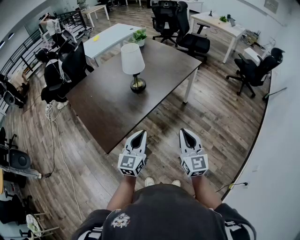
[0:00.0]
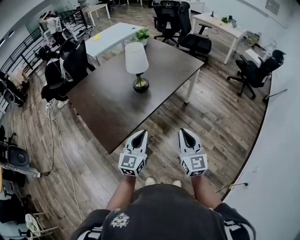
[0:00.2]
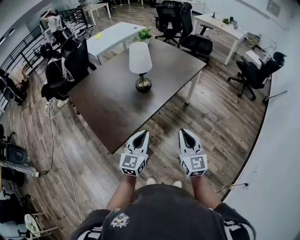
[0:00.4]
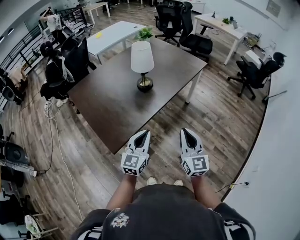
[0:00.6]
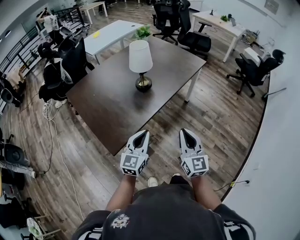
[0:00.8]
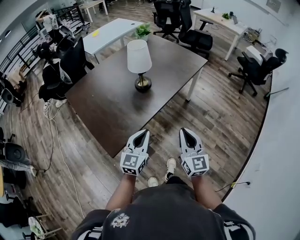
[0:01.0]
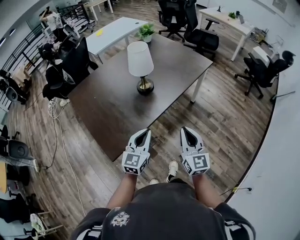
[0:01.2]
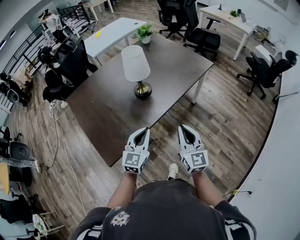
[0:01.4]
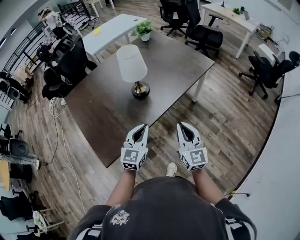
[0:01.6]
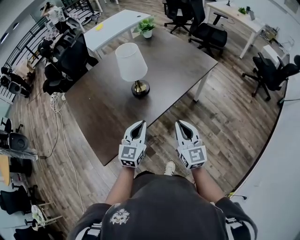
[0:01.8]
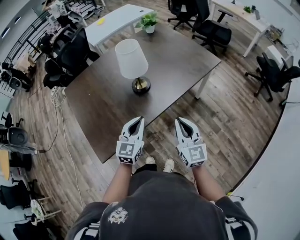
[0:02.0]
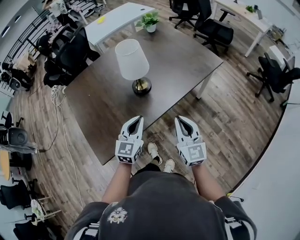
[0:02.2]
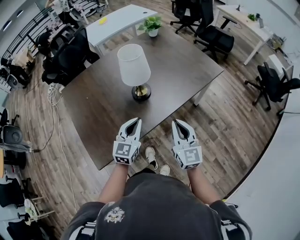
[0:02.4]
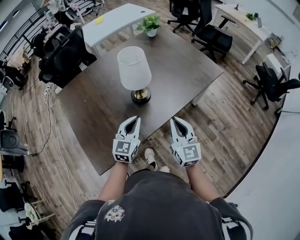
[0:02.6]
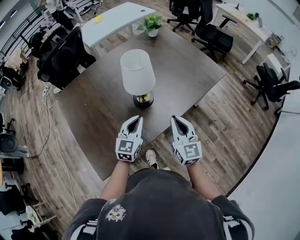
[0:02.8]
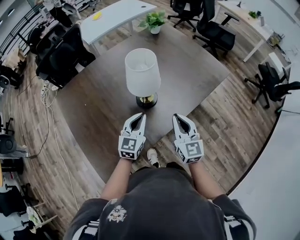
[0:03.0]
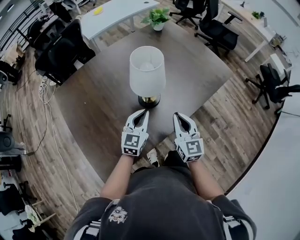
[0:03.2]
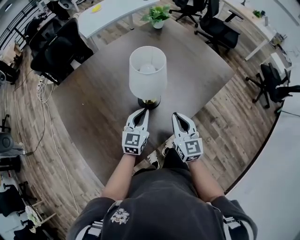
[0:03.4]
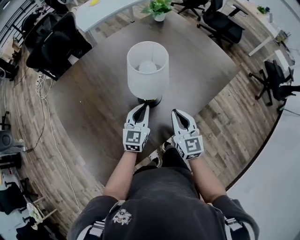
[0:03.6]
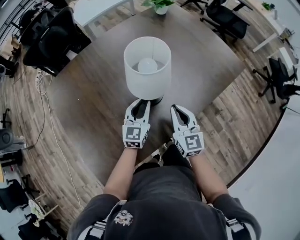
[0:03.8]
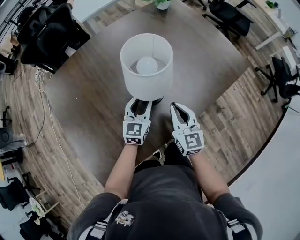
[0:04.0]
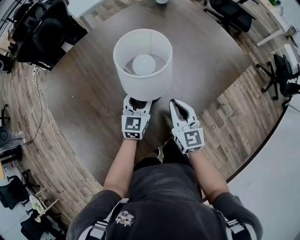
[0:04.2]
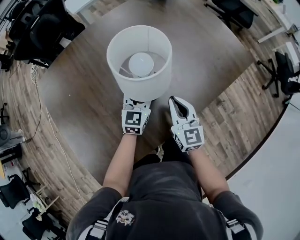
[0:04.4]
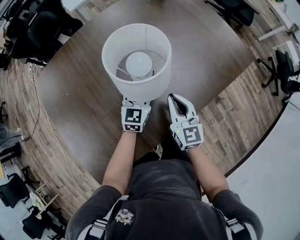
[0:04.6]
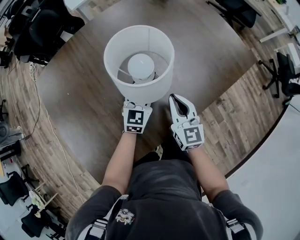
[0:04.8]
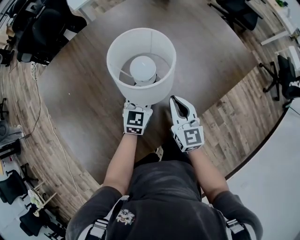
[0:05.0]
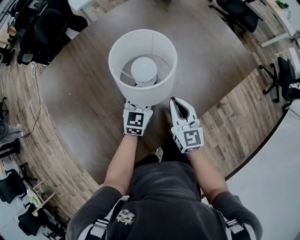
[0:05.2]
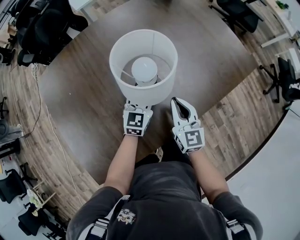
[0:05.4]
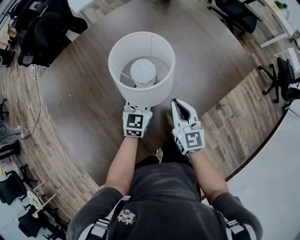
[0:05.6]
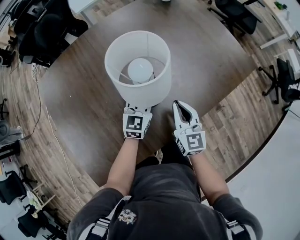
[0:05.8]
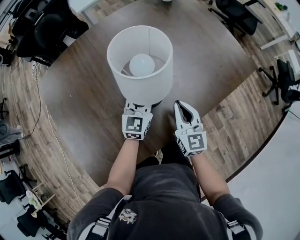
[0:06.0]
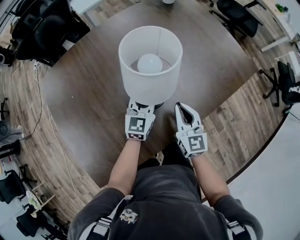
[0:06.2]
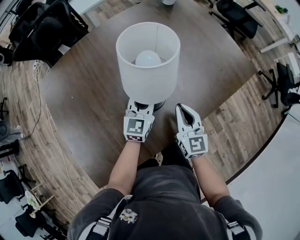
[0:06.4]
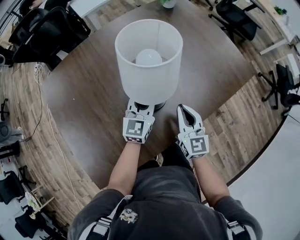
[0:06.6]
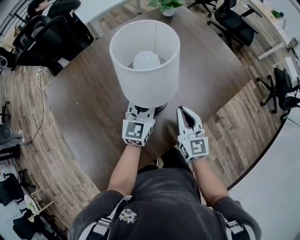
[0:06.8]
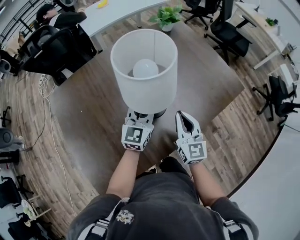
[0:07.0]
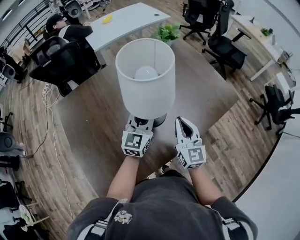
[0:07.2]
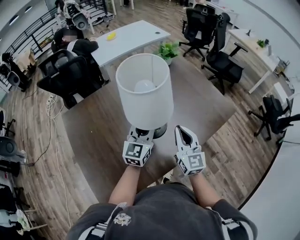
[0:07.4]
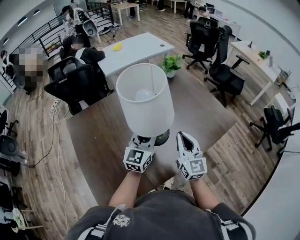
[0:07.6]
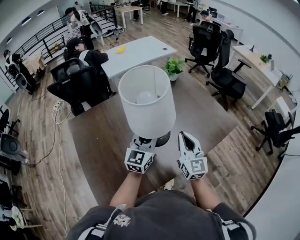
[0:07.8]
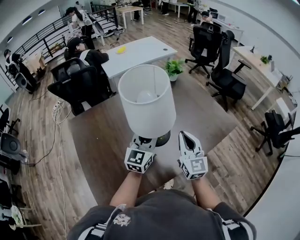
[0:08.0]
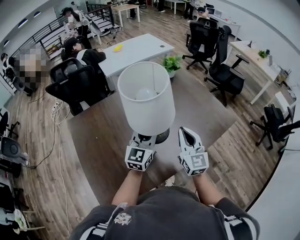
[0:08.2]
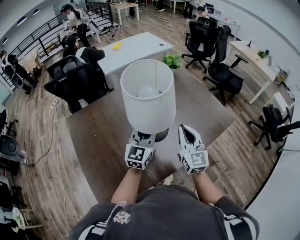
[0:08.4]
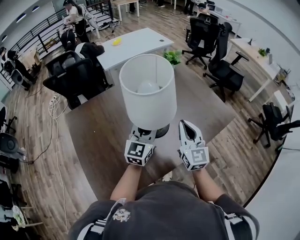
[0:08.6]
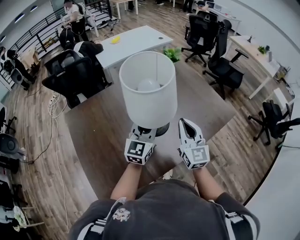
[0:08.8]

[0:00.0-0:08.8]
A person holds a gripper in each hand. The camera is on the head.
0:00.0 to 0:01.4: Both grippers move forward, roughly 15 cm.
0:01.4 to 0:03.0: Both grippers travel together forward, roughly 20 cm.
0:03.0 to 0:04.4: The left gripper shifts some 20 cm forward and downward, and opens its fingers; the right gripper travels downward and forward by roughly 15 cm.
0:04.4 to 0:05.8: The left gripper closes.
0:05.8 to 0:07.4: Both grippers travel together upward, roughly 20 cm.
0:07.4 to 0:08.8: The right gripper ends up some 5 cm from where it was.

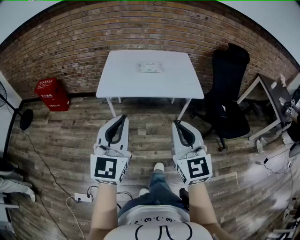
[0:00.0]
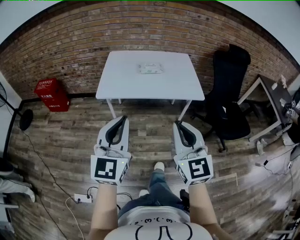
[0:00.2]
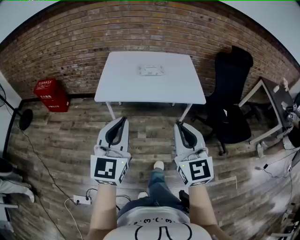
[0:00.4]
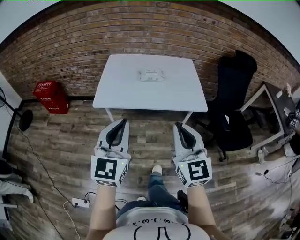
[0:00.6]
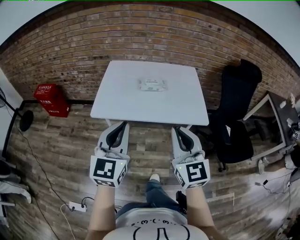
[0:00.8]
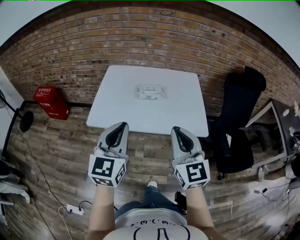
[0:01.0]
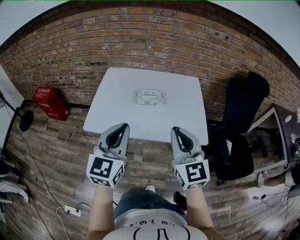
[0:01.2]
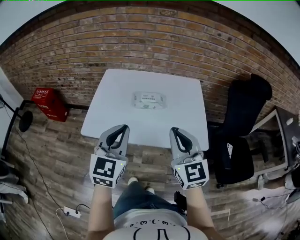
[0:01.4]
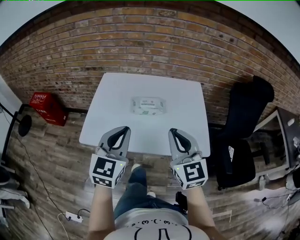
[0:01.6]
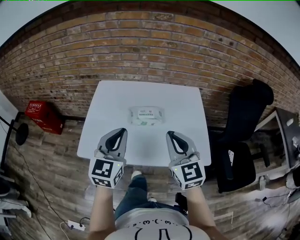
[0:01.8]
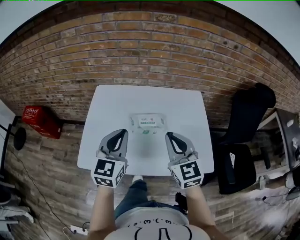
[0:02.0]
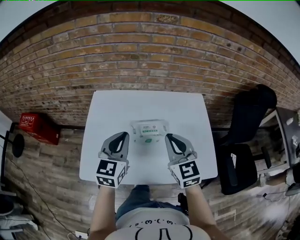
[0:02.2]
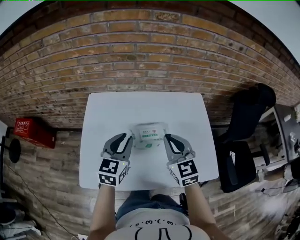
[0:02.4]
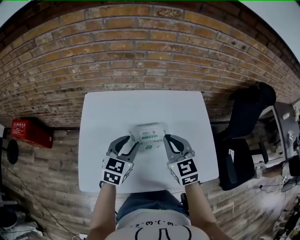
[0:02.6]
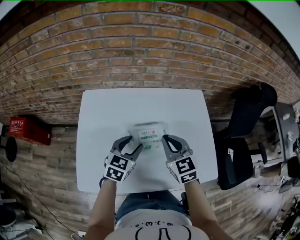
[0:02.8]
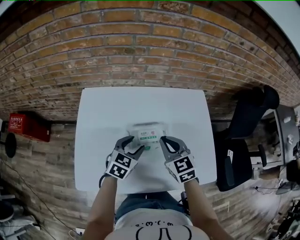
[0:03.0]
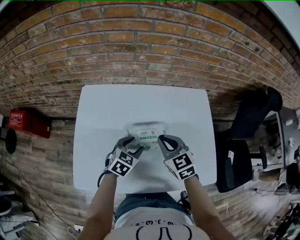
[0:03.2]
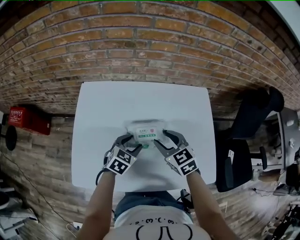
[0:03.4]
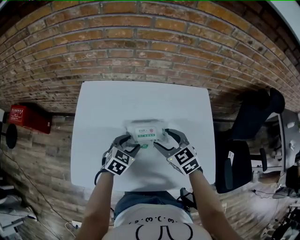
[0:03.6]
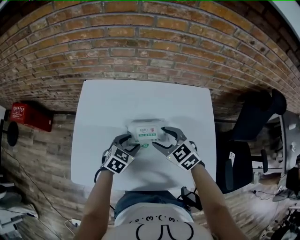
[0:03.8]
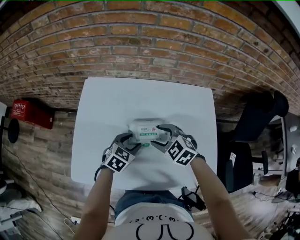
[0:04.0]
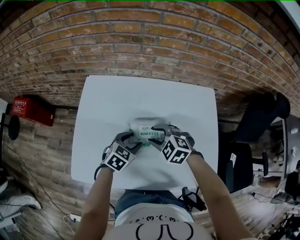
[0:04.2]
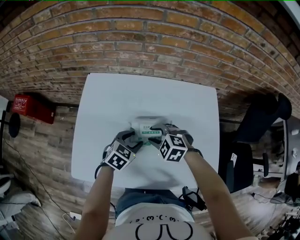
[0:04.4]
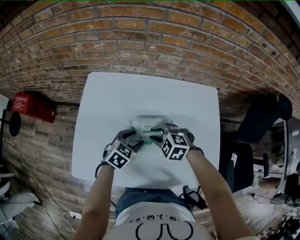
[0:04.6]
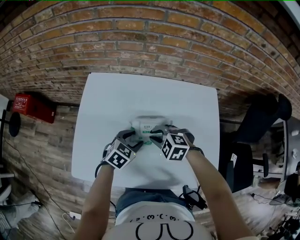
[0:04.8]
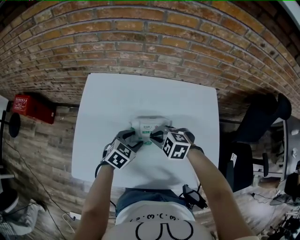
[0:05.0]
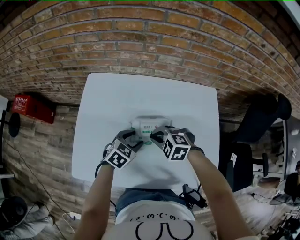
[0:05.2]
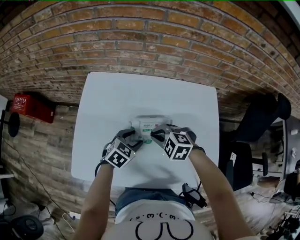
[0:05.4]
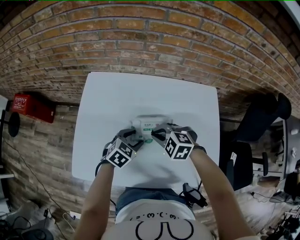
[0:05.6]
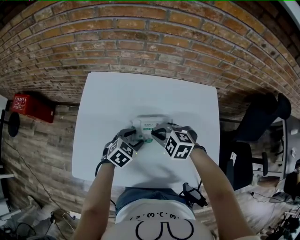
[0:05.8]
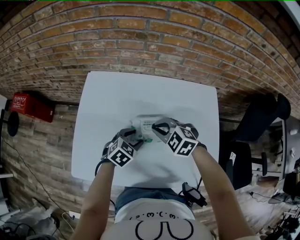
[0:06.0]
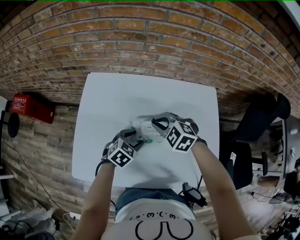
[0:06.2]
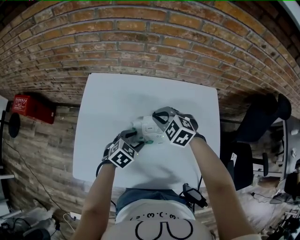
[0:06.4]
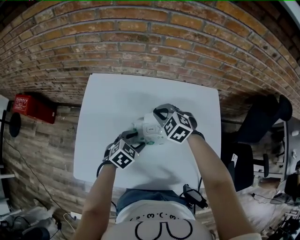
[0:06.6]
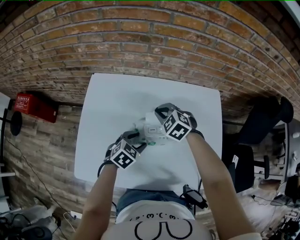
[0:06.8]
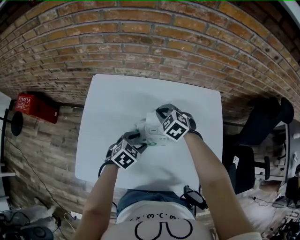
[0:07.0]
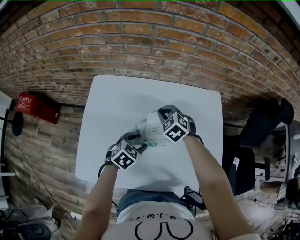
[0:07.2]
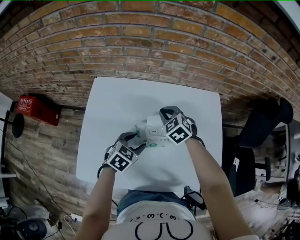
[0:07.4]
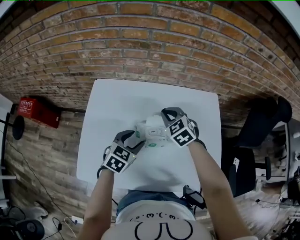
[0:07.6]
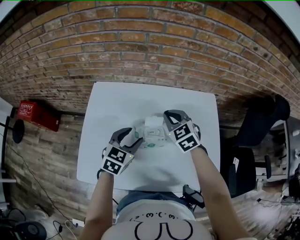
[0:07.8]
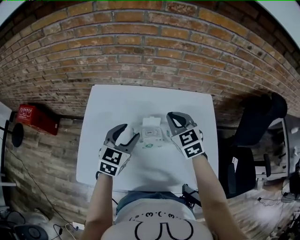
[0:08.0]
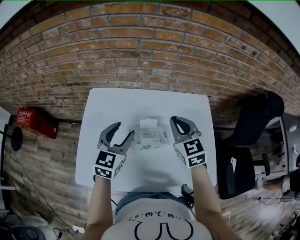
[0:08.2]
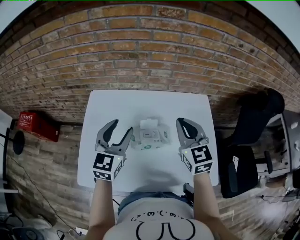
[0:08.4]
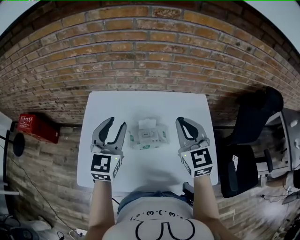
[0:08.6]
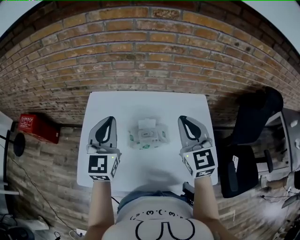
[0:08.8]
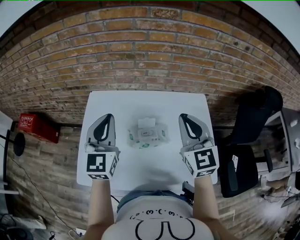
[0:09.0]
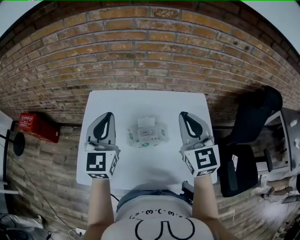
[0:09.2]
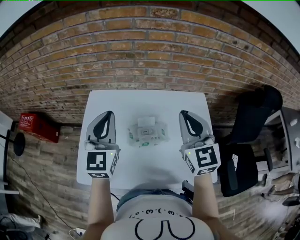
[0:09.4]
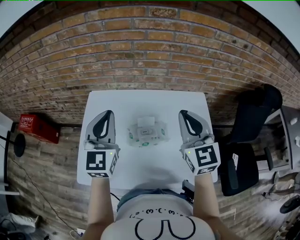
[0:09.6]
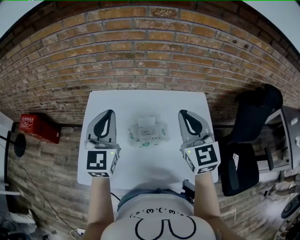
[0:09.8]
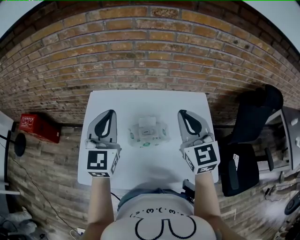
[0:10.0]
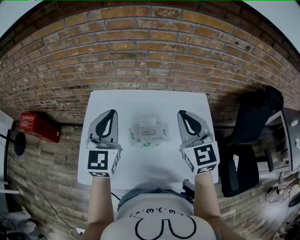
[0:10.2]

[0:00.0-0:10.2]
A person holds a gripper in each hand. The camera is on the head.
0:00.0 to 0:01.4: Both grippers travel together forward, about 35 cm.
0:01.4 to 0:03.0: Both grippers travel together forward and downward, about 35 cm. The right gripper rotates roughly 30 degrees; the left gripper turns by some 40 degrees, and opens up.
0:03.0 to 0:04.4: The left gripper travels downward by some 5 cm. Meanwhile the right gripper moves downward, about 10 cm, rotates about 50 degrees, and opens.
0:04.4 to 0:05.8: The right gripper closes up.
0:05.8 to 0:07.2: The right gripper moves forward, approximately 15 cm, and turns by about 30 degrees.
0:07.2 to 0:08.8: The right gripper moves upward, backward and to the right, about 30 cm, and angles its fingers upward, by approximately 40 degrees, while the left gripper is displaced upward by some 30 cm, tips its fingers upward by about 50 degrees, and closes its fingers.
0:08.8 to 0:10.2: The grippers make only small movements.

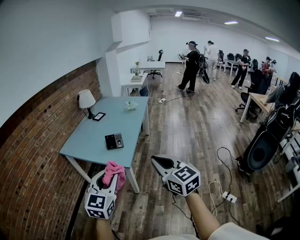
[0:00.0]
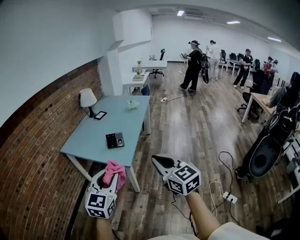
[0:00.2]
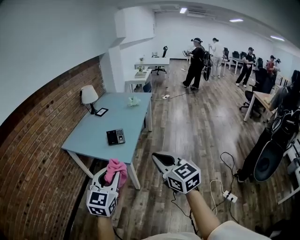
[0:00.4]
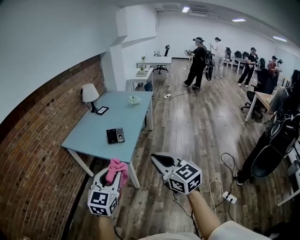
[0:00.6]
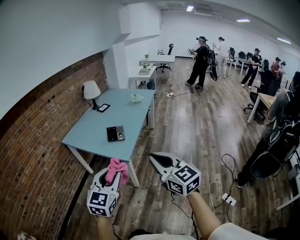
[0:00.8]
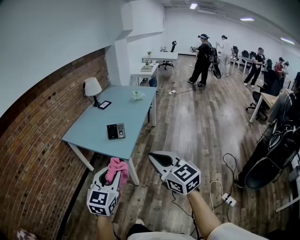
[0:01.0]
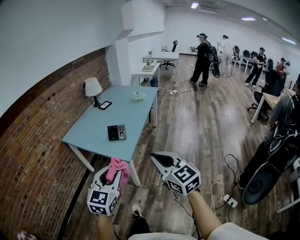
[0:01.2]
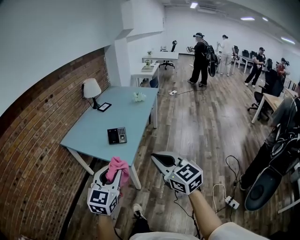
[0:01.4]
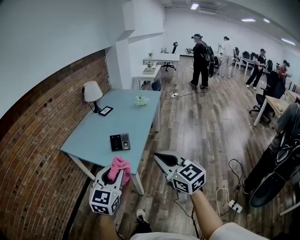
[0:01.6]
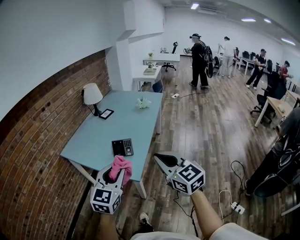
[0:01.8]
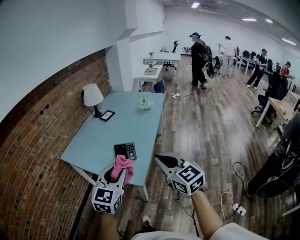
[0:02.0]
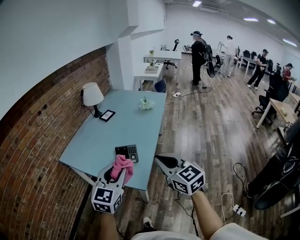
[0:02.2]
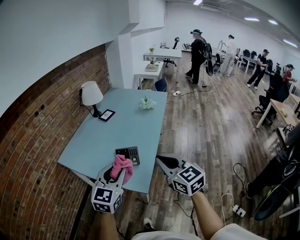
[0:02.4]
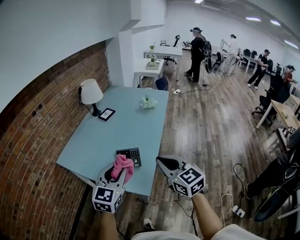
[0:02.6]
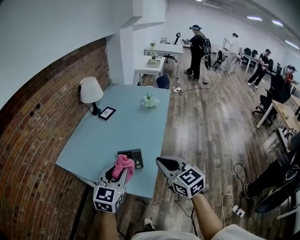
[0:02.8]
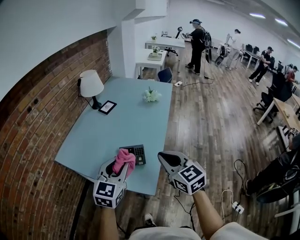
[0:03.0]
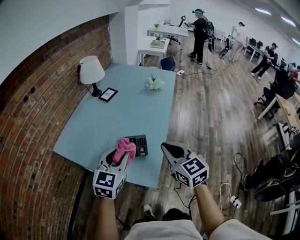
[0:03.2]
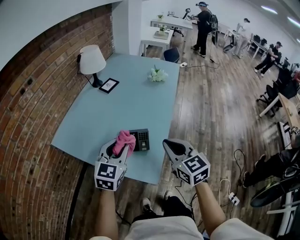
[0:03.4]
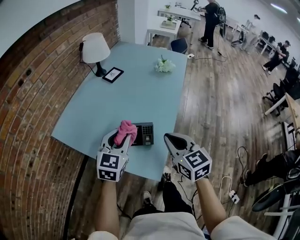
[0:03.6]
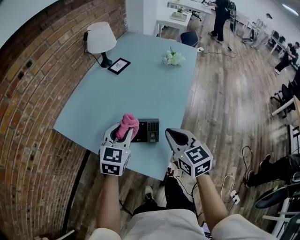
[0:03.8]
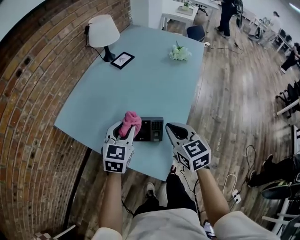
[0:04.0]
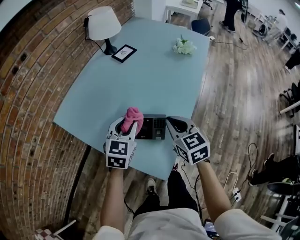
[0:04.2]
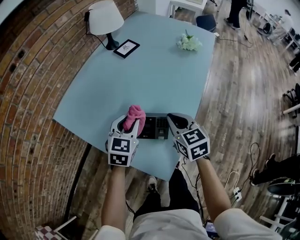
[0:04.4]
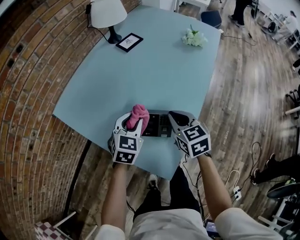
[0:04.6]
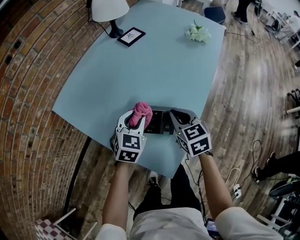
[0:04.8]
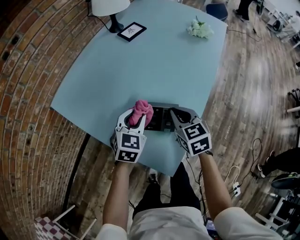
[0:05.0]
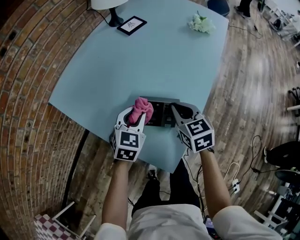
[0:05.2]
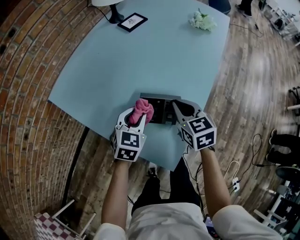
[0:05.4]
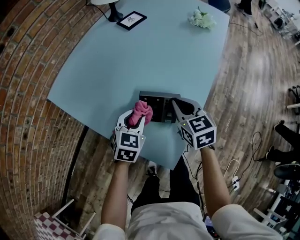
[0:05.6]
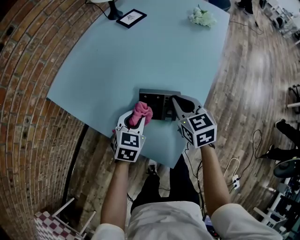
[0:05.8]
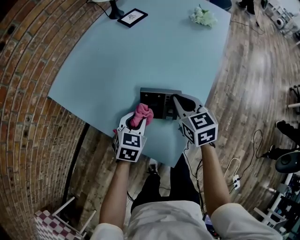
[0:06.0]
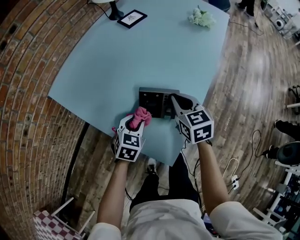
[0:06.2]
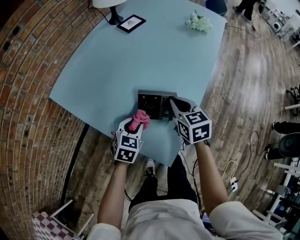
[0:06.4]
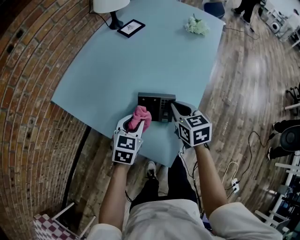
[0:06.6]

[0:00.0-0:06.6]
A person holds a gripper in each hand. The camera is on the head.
0:00.0 to 0:01.6: The two grippers go roughly 15 cm forward.
0:01.6 to 0:03.2: Both grippers move forward, roughly 30 cm.
0:03.2 to 0:05.0: Both grippers move downward and forward, approximately 25 cm. The right gripper rotates roughly 20 degrees. Meanwhile the left gripper turns by approximately 20 degrees.
0:05.0 to 0:06.6: The left gripper moves backward, some 5 cm, and travels downward and back again, about 10 cm each way.
